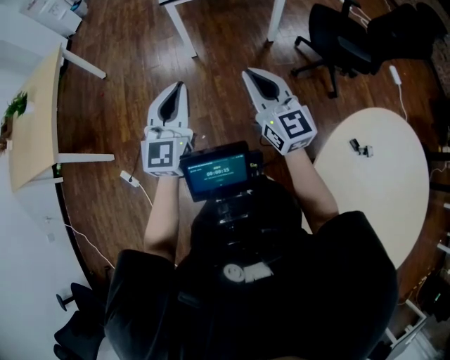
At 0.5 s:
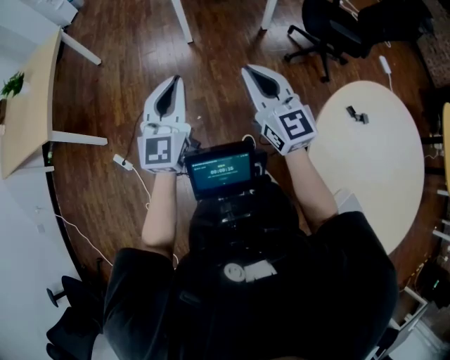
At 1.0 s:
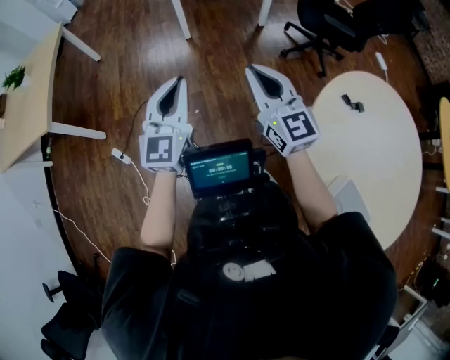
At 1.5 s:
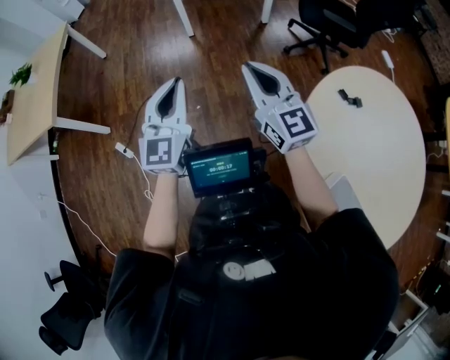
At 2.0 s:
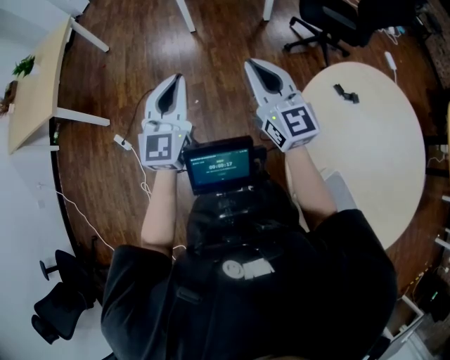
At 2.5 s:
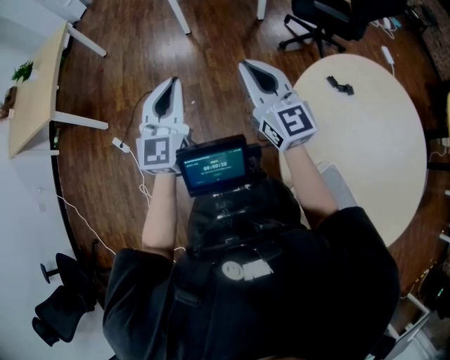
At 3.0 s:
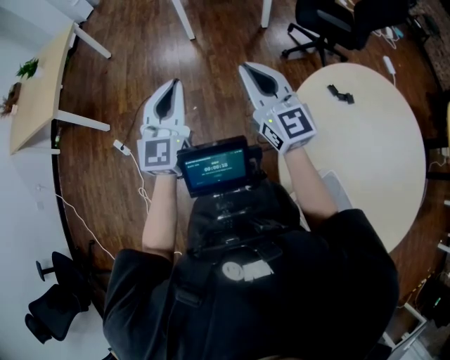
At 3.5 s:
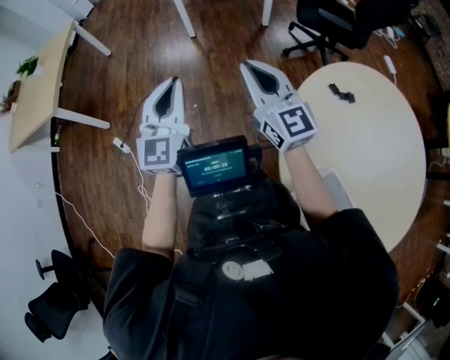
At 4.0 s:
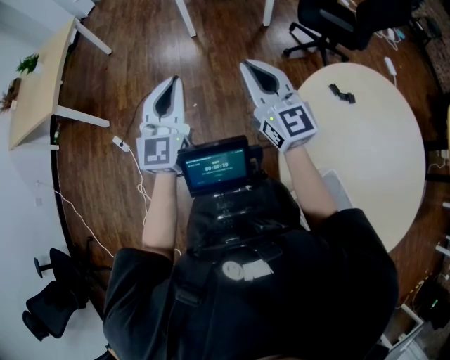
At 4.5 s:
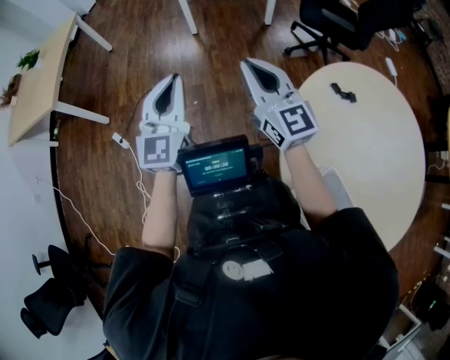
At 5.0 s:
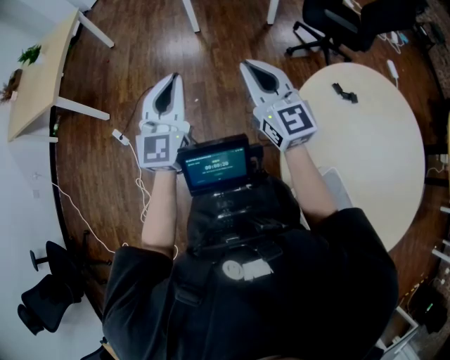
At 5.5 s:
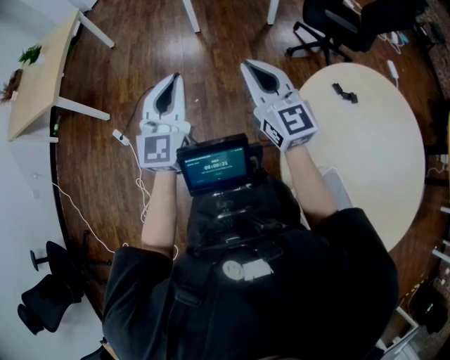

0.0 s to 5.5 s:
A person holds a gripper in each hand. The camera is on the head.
0.0 to 2.0 s: Both grippers move backward, about 20 cm.
2.0 to 3.5 s: The two grippers go roughly 5 cm backward.
3.5 to 5.5 s: The grippers move only a little.

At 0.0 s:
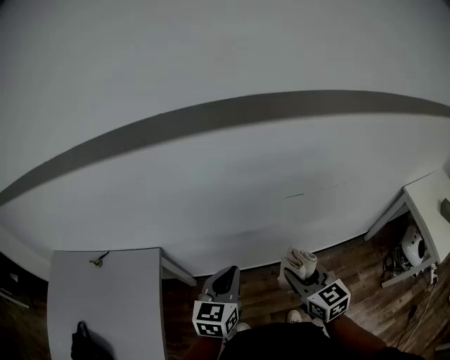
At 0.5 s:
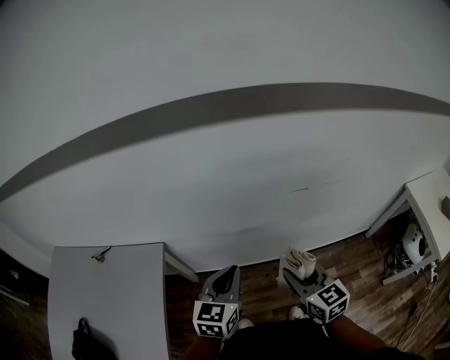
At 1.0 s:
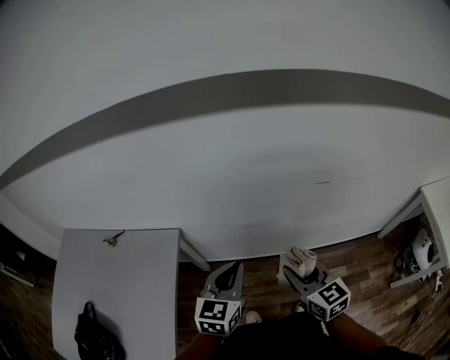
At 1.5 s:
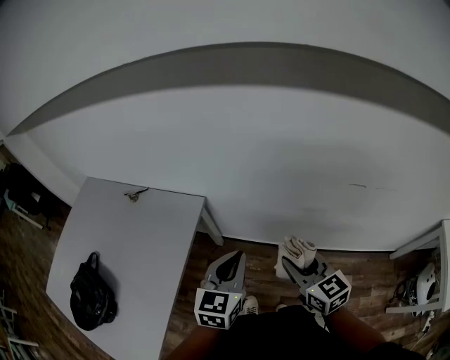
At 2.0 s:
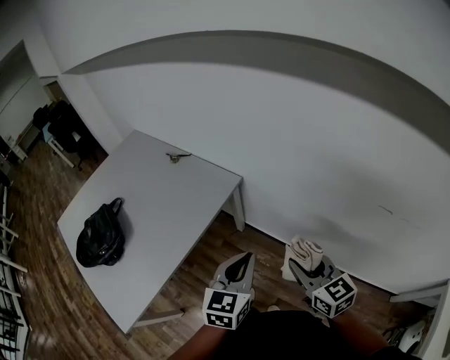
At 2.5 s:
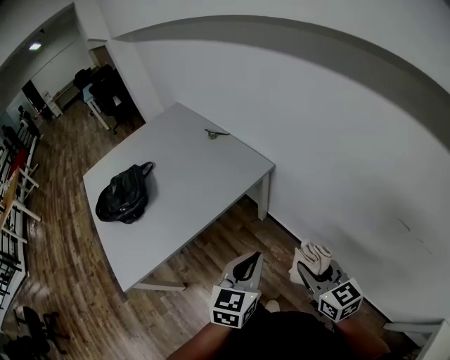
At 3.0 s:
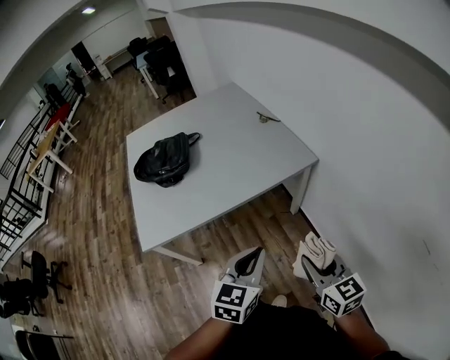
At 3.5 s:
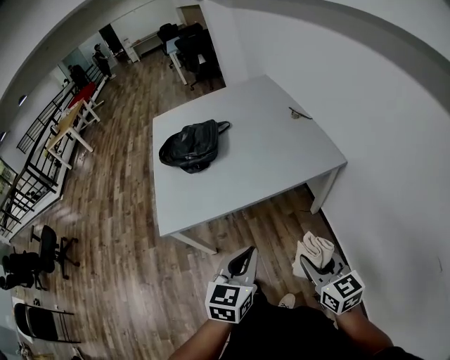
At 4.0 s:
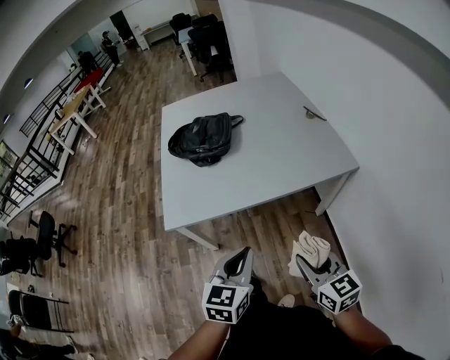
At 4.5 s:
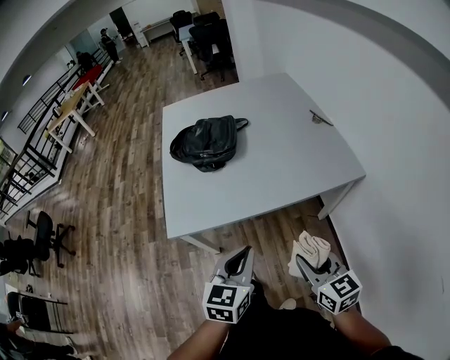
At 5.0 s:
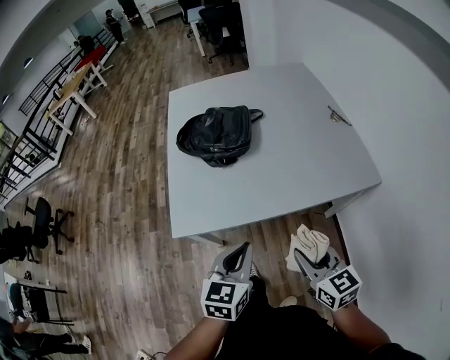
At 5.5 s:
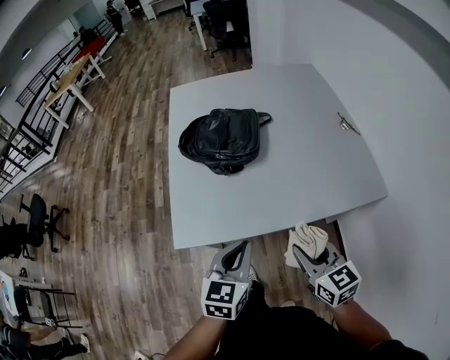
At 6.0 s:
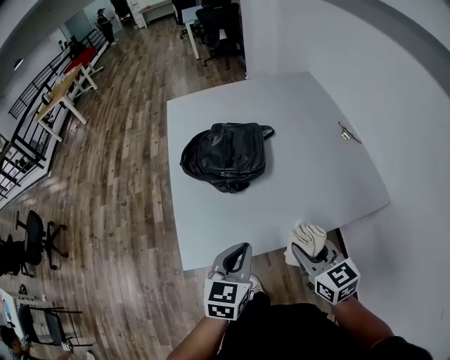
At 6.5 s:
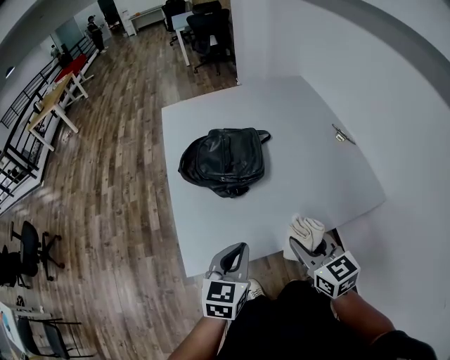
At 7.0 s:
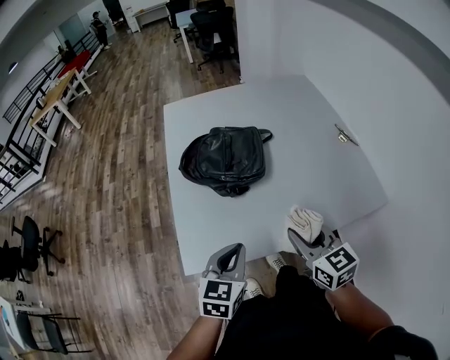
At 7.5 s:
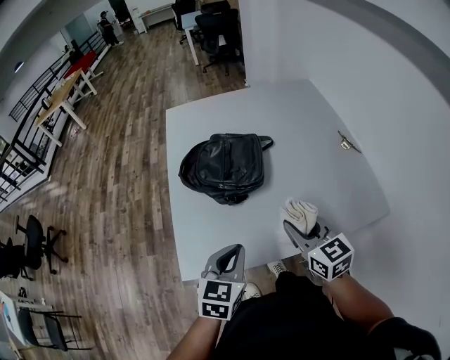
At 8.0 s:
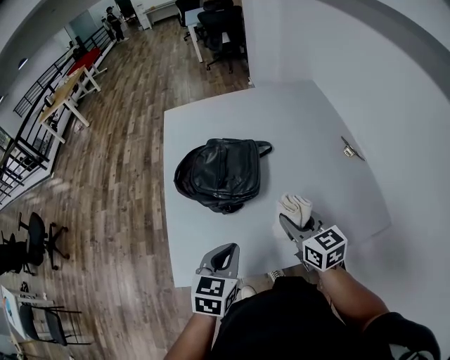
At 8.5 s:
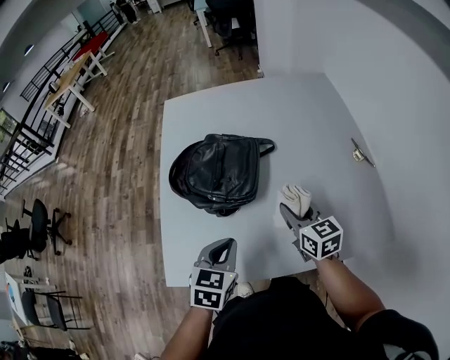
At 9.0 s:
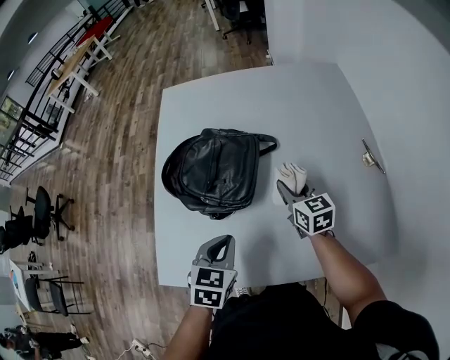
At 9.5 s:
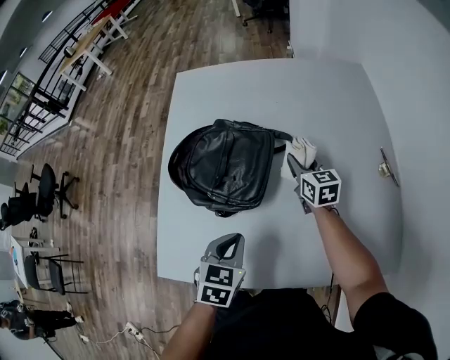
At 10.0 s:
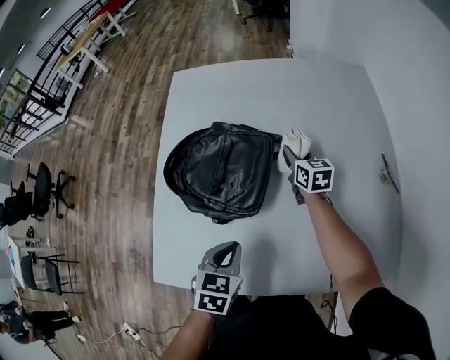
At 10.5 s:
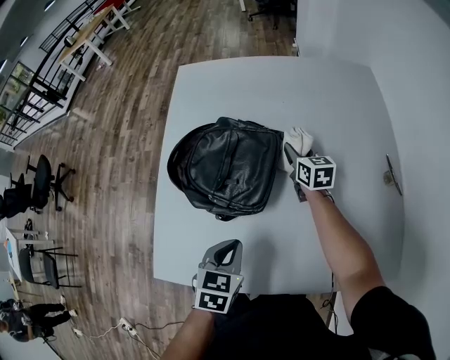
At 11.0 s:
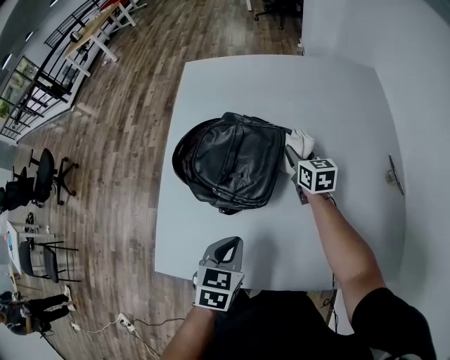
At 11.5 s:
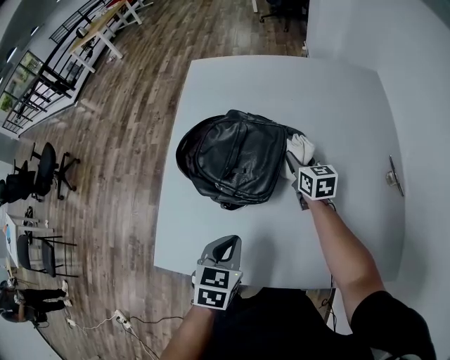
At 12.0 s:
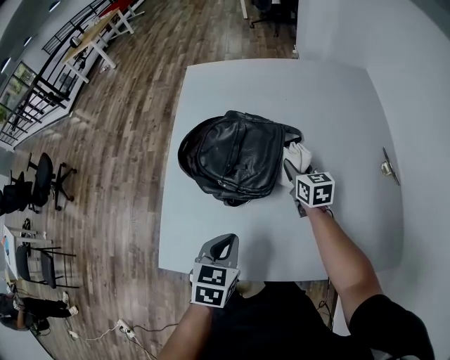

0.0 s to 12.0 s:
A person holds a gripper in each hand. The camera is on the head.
0.0 to 2.0 s: The right gripper ends up some 15 cm from where it was, and changes its angle by approximately 40 degrees, while the left gripper shifts by roughly 15 cm, and changes its angle by some 30 degrees.
2.0 to 4.0 s: The right gripper changes place by some 25 cm, and rotates approximately 40 degrees. Meanwhile the left gripper changes place by some 30 cm, and rotates approximately 50 degrees.
4.0 to 6.0 s: The grippers both shift forward and to the left by roughly 30 cm.
6.0 to 8.0 s: The right gripper shifts some 15 cm forward. Meanwhile the left gripper travels forward by roughly 10 cm.
8.0 to 10.0 s: The right gripper moves forward and downward, some 40 cm. Meanwhile the left gripper heads downward, forward and to the right, covering roughly 15 cm.
10.0 to 12.0 s: The right gripper shifts approximately 10 cm backward, while the left gripper changes place by approximately 5 cm.

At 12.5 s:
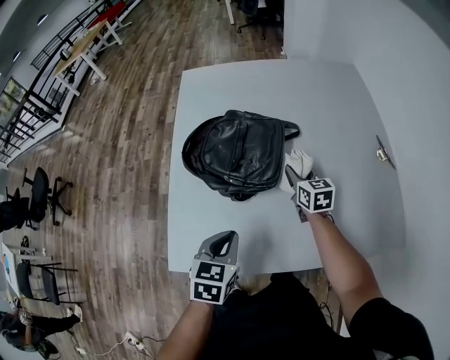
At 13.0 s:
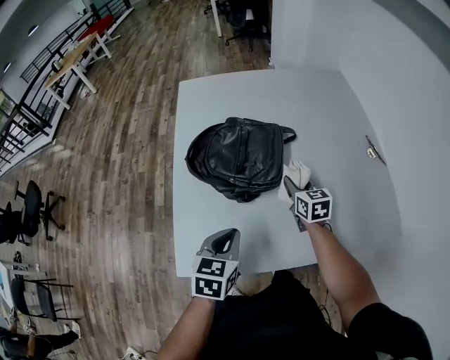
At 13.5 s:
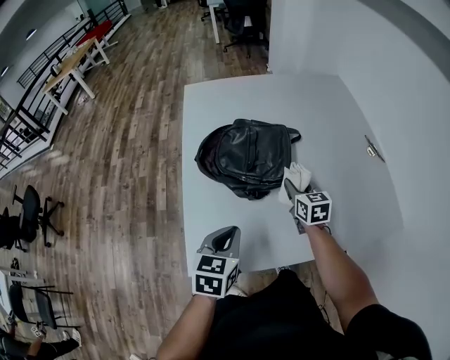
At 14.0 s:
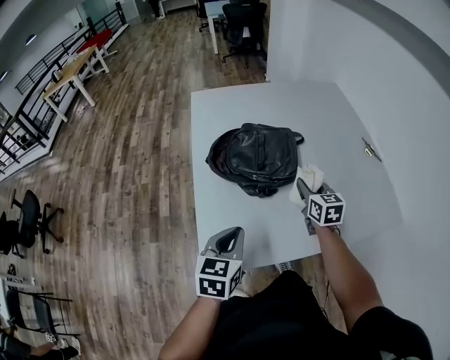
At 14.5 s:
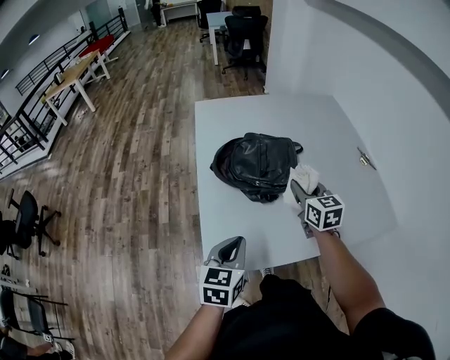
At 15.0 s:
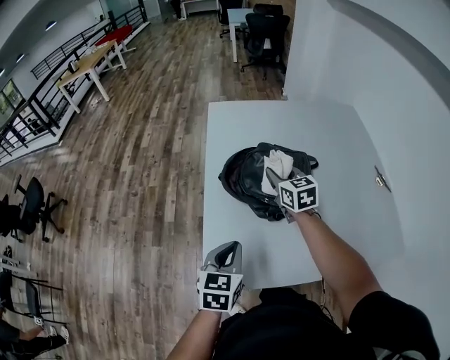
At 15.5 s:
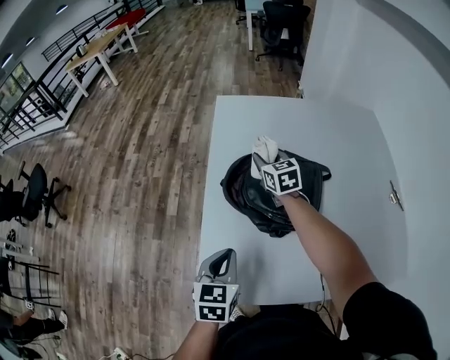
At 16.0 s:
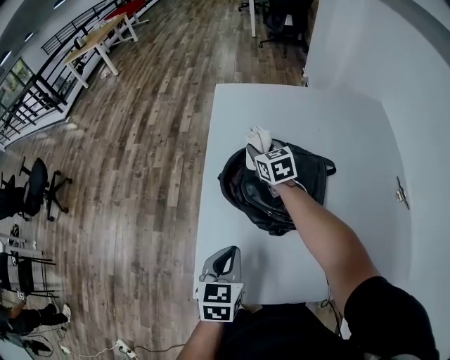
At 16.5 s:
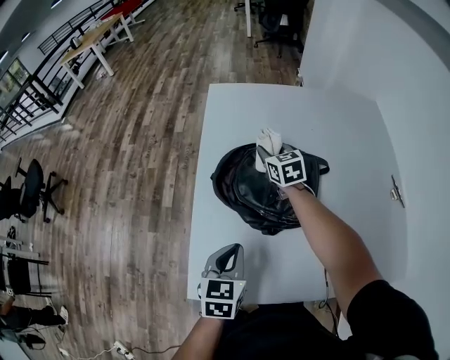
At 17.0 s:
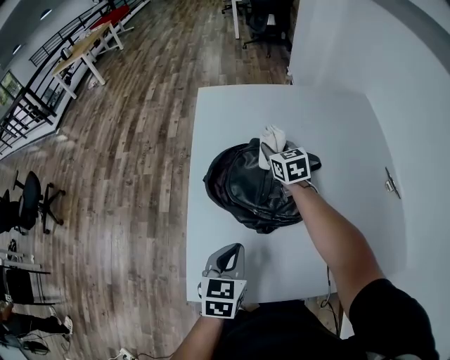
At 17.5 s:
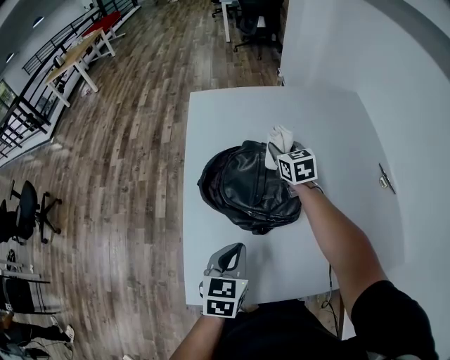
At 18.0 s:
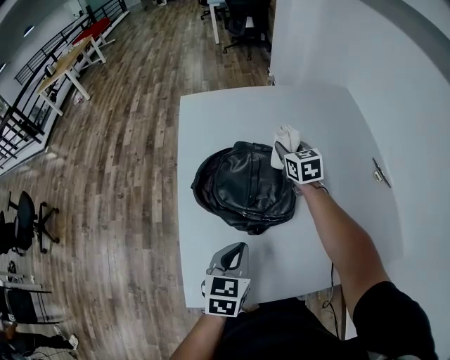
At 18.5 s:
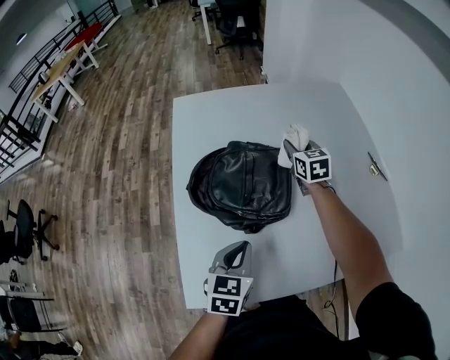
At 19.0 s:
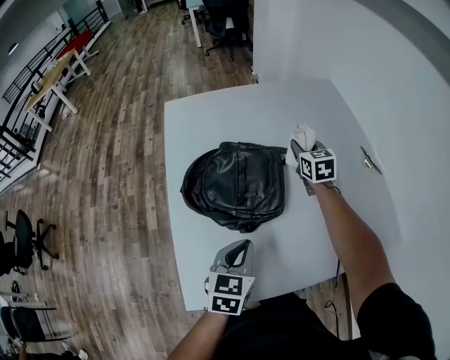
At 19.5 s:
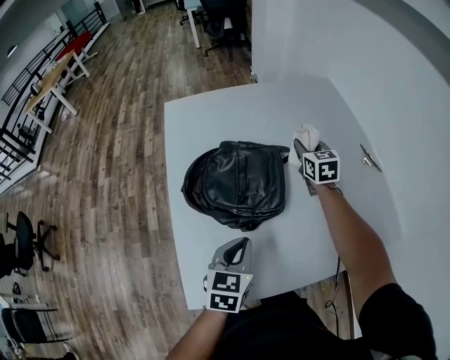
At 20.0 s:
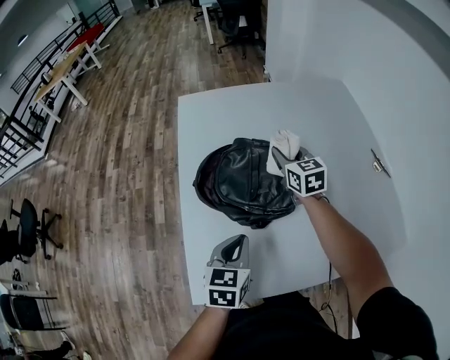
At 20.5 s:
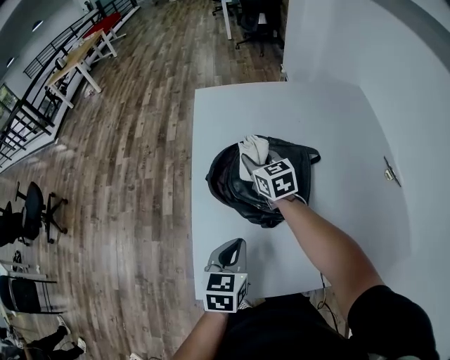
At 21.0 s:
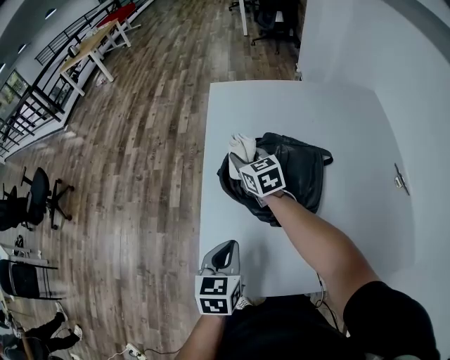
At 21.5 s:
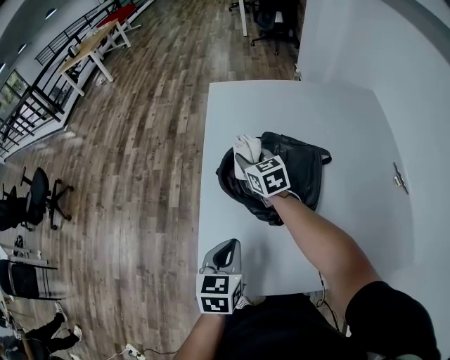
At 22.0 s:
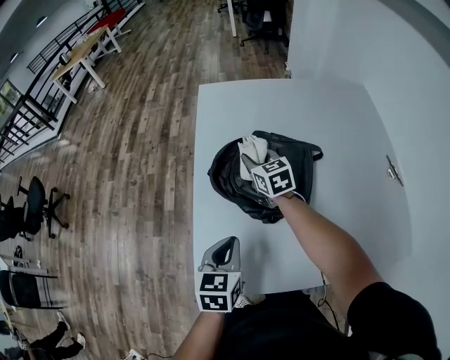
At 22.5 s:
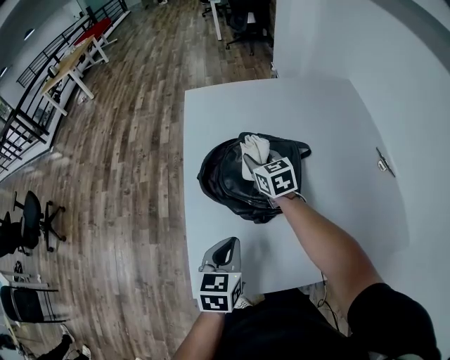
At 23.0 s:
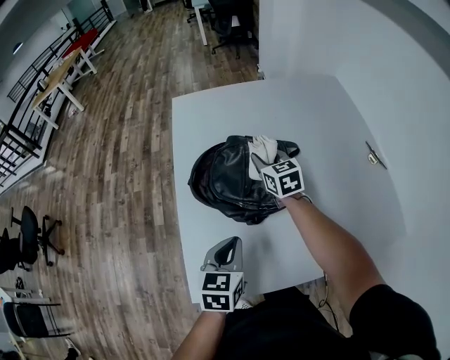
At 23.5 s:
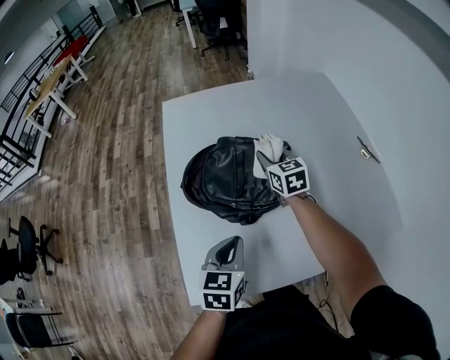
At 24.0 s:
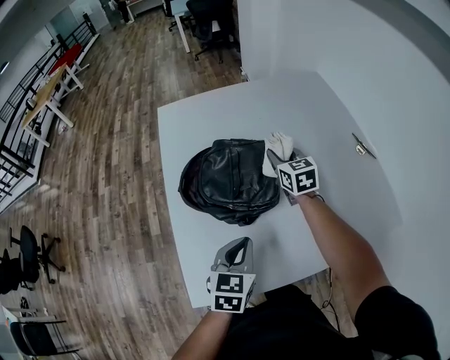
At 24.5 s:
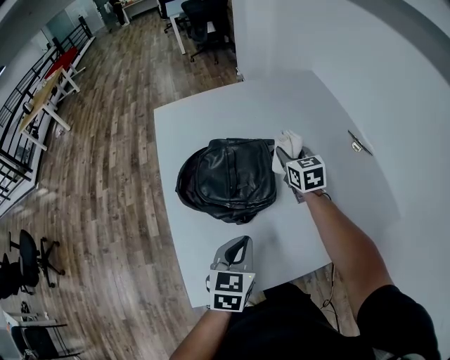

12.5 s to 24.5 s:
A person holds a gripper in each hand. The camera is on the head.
12.5 to 14.5 s: The left gripper moves to the left, backward and upward, approximately 15 cm; the right gripper shifts about 25 cm upward, backward and to the left.
14.5 to 16.5 s: The left gripper goes roughly 15 cm forward and downward. The right gripper moves forward, approximately 30 cm.
16.5 to 18.5 s: The left gripper travels to the right by some 5 cm. Meanwhile the right gripper goes about 20 cm to the right.
18.5 to 20.5 s: The right gripper is displaced to the left by approximately 20 cm, while the left gripper shifts roughly 5 cm to the left.
20.5 to 22.5 s: The right gripper travels to the left and back again, approximately 10 cm each way.
22.5 to 24.5 s: The right gripper travels to the right by roughly 20 cm, and rotates some 20 degrees. Meanwhile the left gripper travels to the right by roughly 10 cm.
